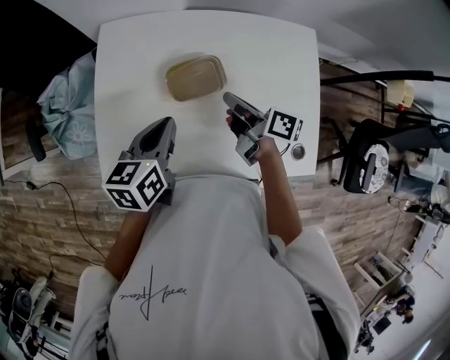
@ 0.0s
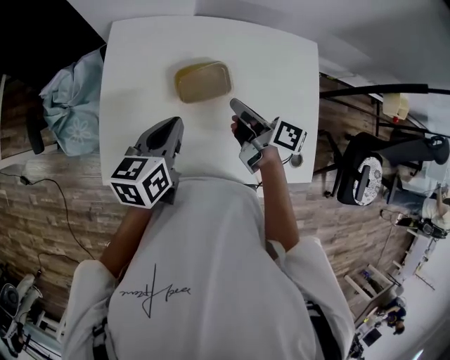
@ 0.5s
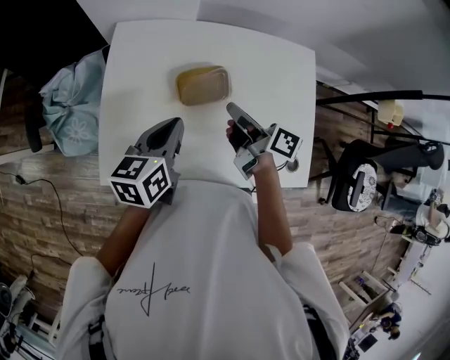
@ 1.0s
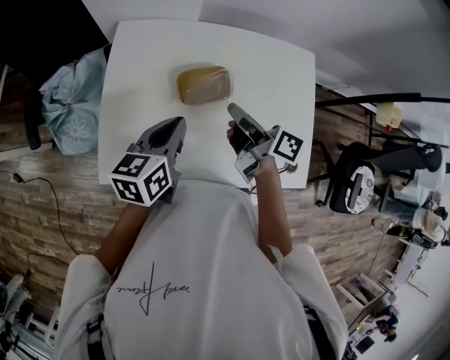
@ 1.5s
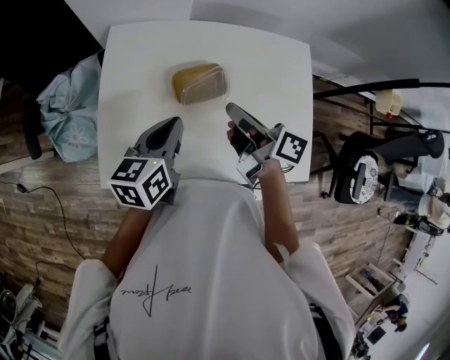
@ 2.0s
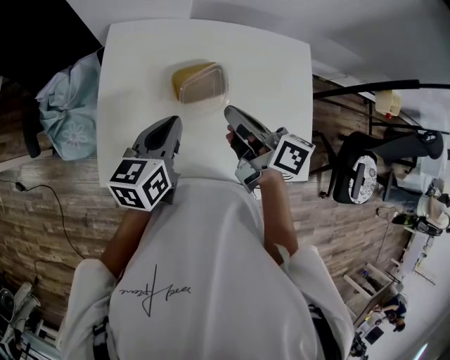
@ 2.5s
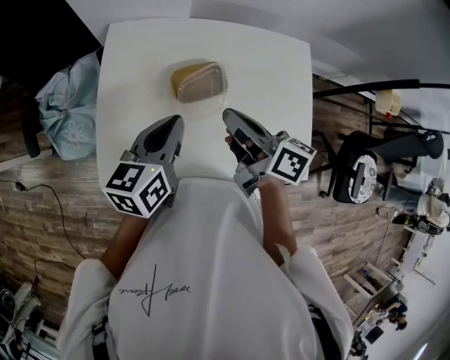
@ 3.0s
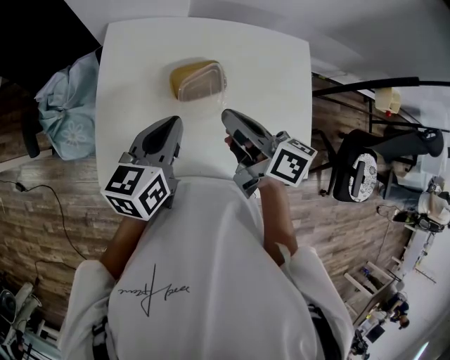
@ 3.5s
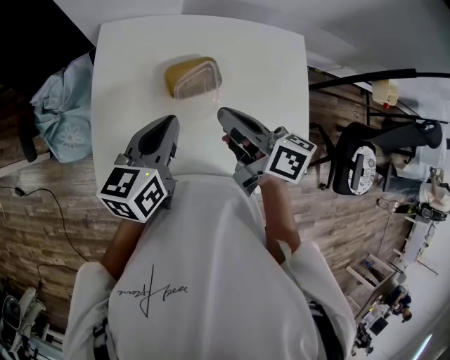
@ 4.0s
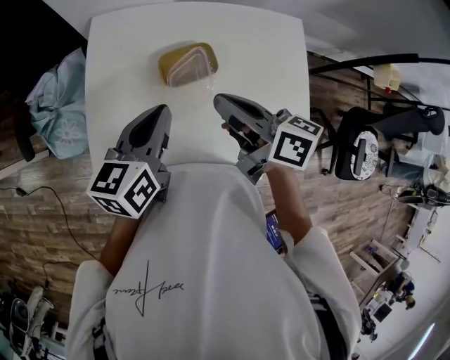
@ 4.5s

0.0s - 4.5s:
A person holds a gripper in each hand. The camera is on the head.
0.0s - 2.0s: The right gripper moves upward, approximately 10 cm.
2.0s - 4.5s: The right gripper shifts by approximately 5 cm.

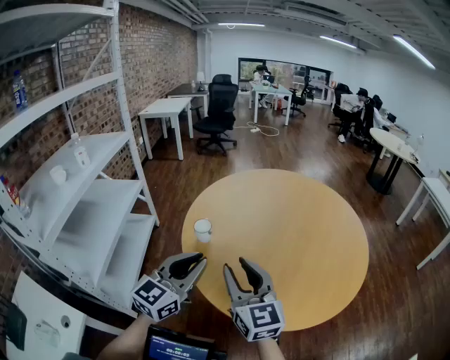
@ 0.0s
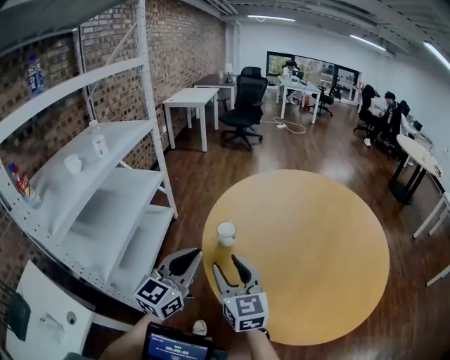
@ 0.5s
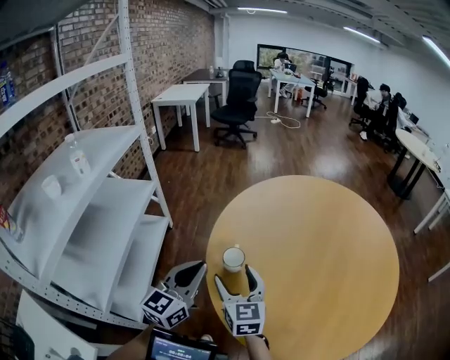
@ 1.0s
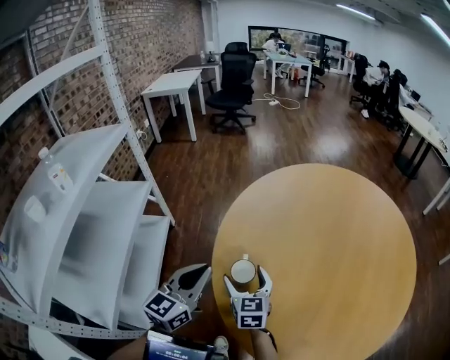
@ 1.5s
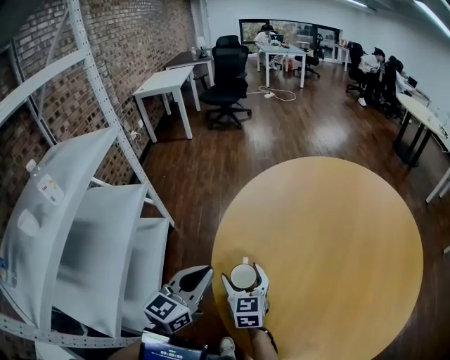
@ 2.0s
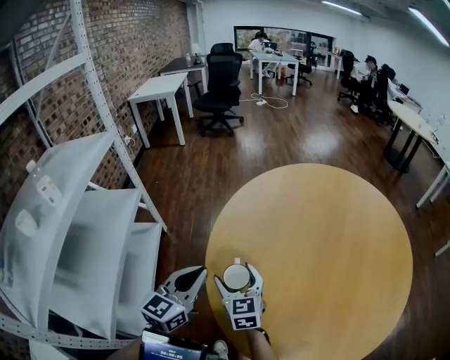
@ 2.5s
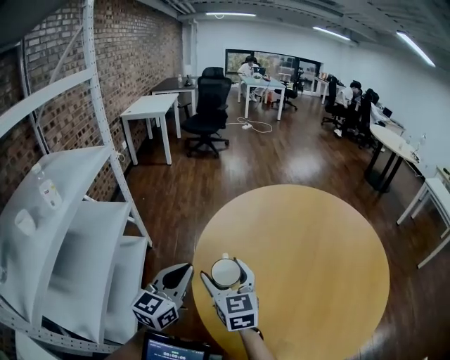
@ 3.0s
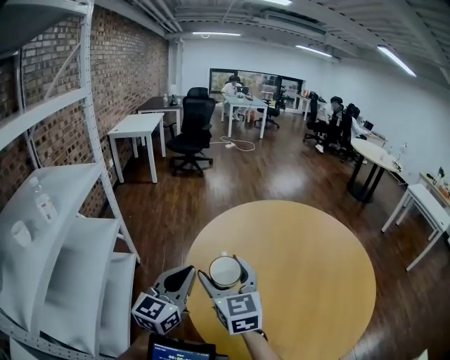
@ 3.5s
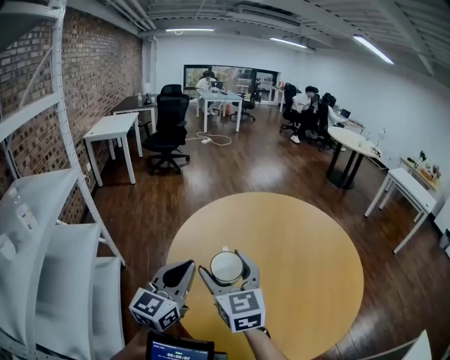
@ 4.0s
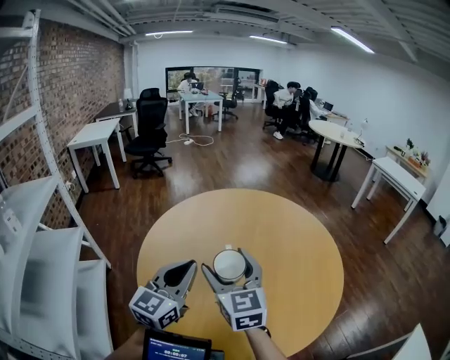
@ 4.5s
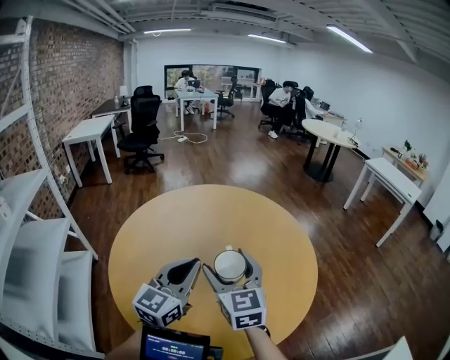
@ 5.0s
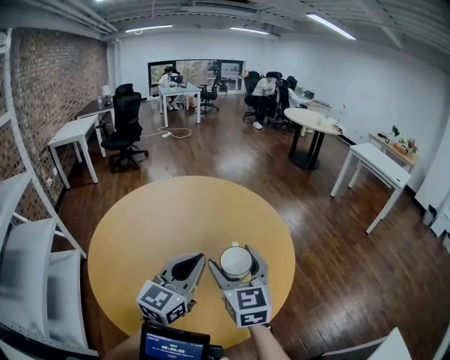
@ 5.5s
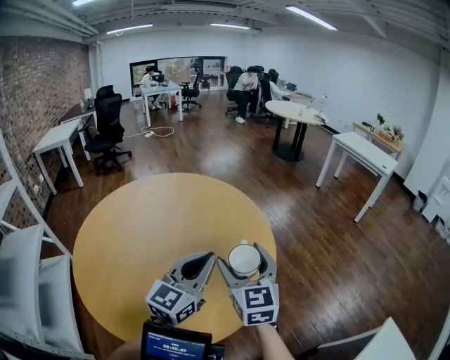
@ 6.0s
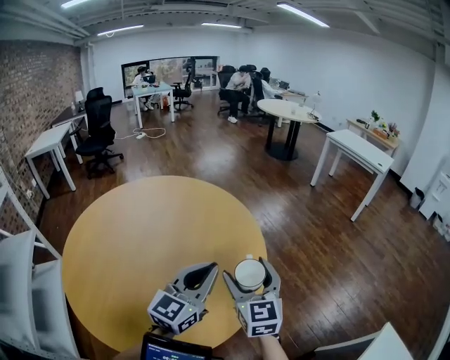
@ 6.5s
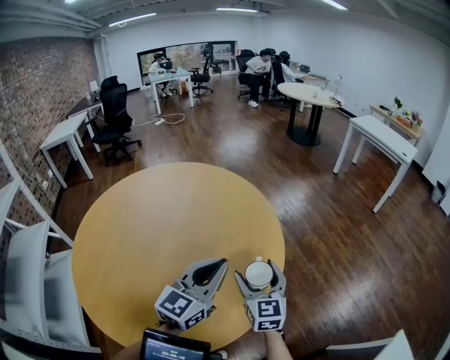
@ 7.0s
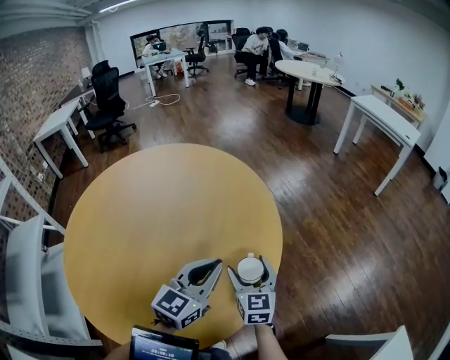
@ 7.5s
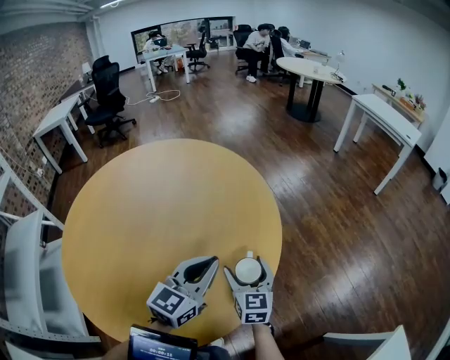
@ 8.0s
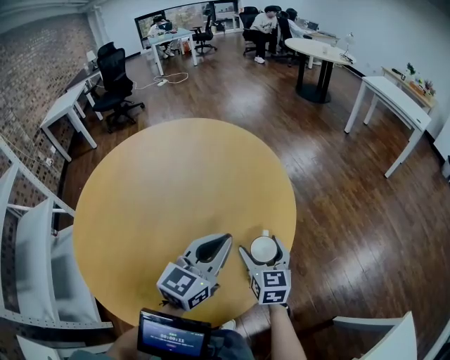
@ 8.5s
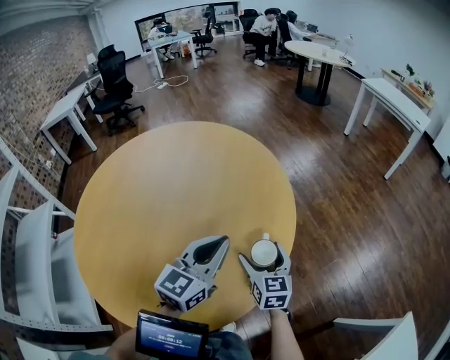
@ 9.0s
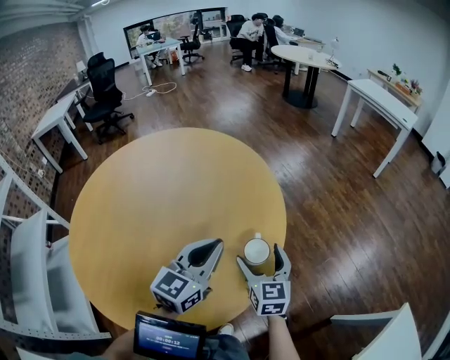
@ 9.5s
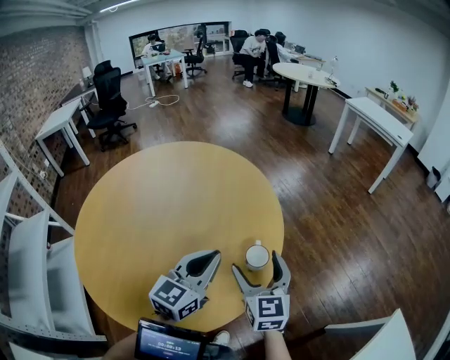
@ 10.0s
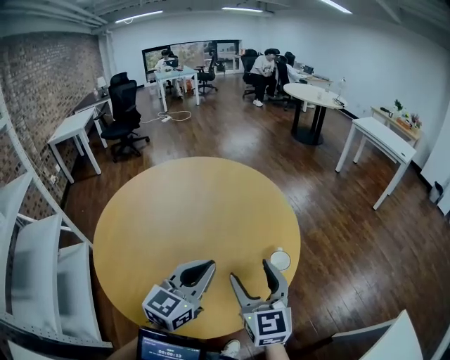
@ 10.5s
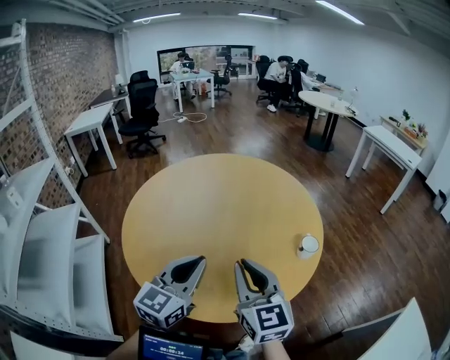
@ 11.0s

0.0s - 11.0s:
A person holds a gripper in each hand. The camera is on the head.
0.0s - 2.0s: The right gripper is displaced forward, downward and to the left by roughly 40 cm, turns by roughly 30 degrees, and opens up. The left gripper goes about 35 cm forward, to the left and downward.
2.0s - 3.5s: The left gripper goes about 15 cm upward. Meanwhile the right gripper travels upward by about 25 cm.
3.5s - 5.5s: Both grippers are carried to the right, roughly 50 cm.
5.5s - 7.5s: The left gripper travels to the right, downward and forward by about 25 cm, while the right gripper travels downward and to the right by approximately 30 cm.
7.5s - 9.0s: There are only small adjustments of the grippers.
9.0s - 11.0s: The right gripper goes about 40 cm upward, backward and to the left, turns by approximately 20 degrees, and closes its fingers, while the left gripper travels to the left, backward and upward by about 35 cm.

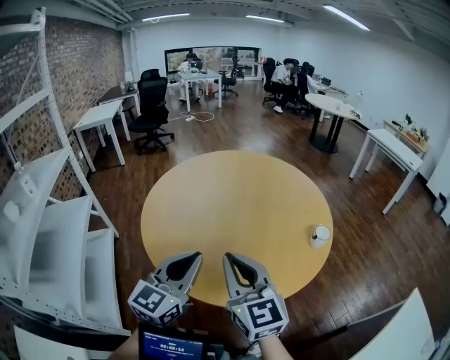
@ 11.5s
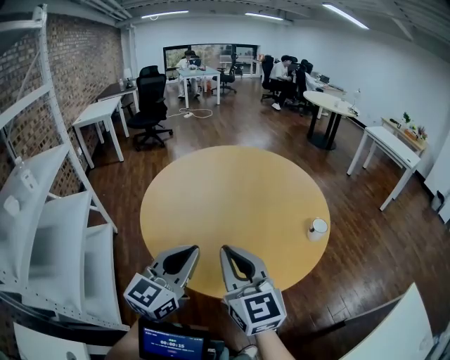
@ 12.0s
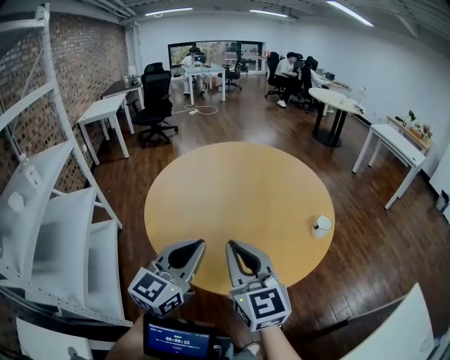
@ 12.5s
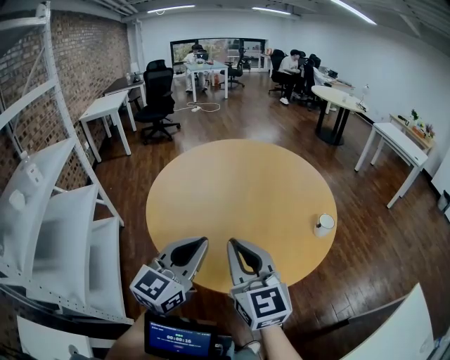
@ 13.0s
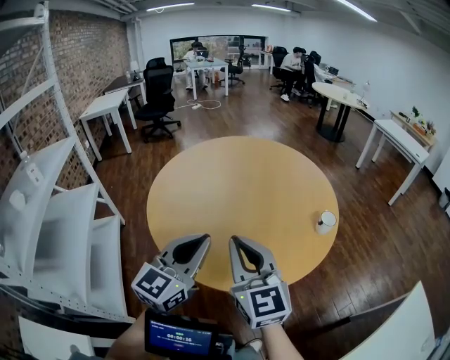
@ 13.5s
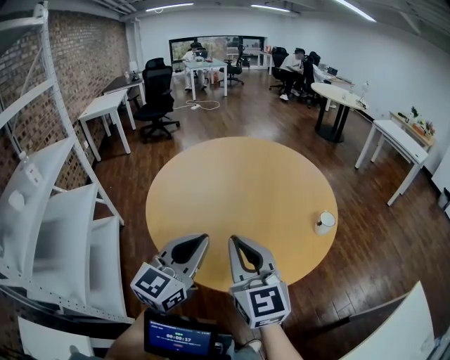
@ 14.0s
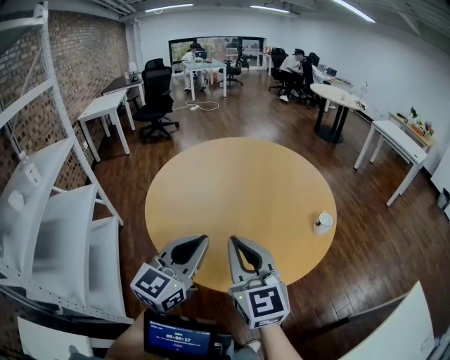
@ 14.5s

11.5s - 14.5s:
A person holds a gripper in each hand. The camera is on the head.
11.5s - 13.0s: The grippers make only small movements.
13.0s - 14.5s: The two grippers keep their place.

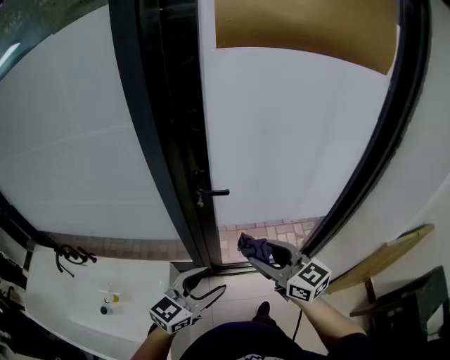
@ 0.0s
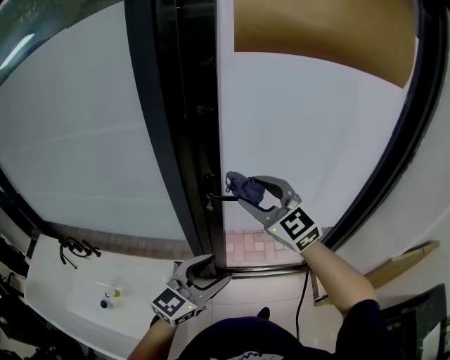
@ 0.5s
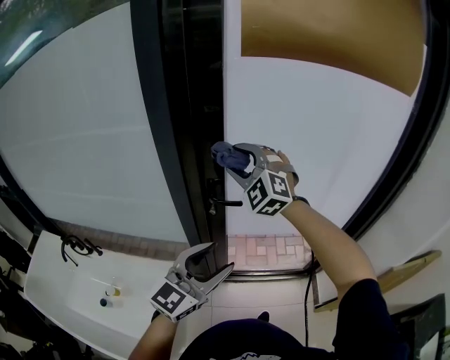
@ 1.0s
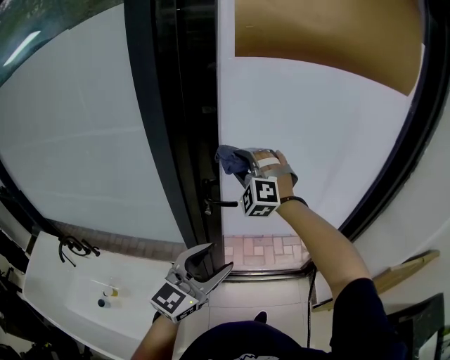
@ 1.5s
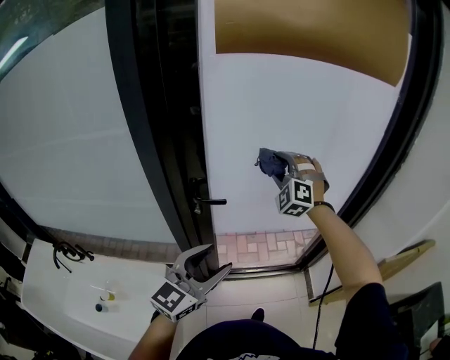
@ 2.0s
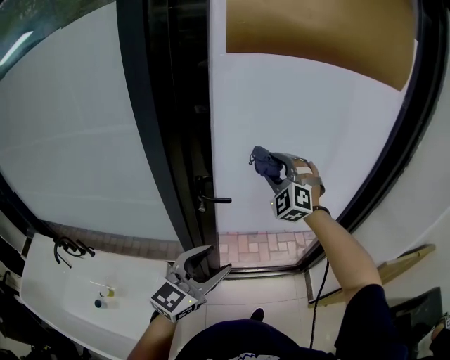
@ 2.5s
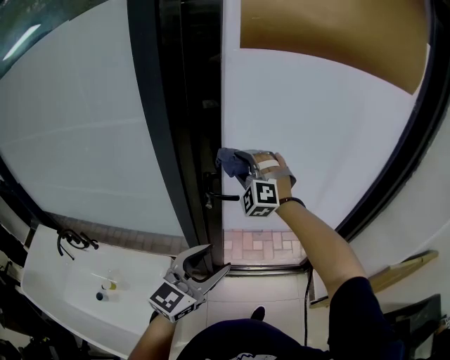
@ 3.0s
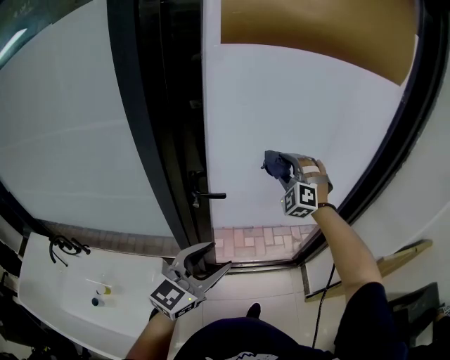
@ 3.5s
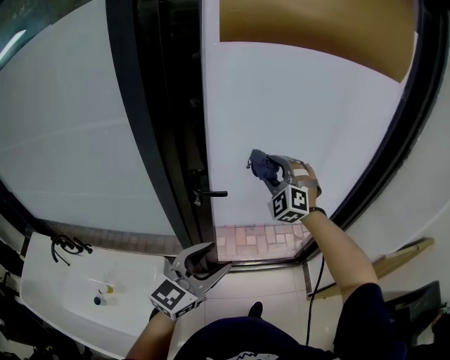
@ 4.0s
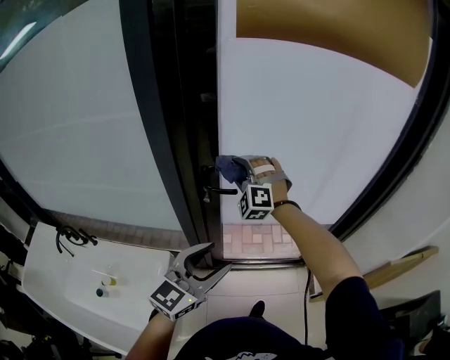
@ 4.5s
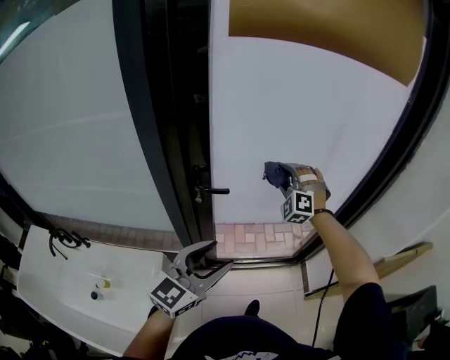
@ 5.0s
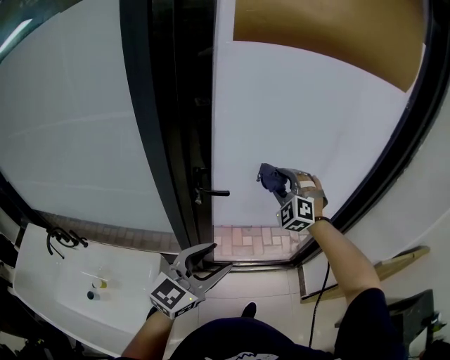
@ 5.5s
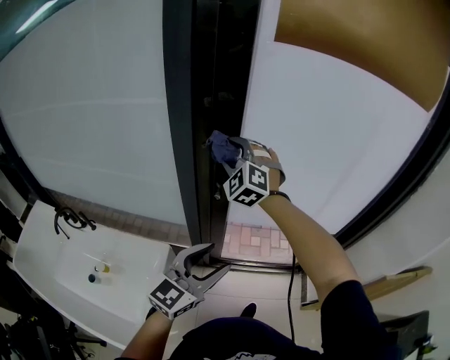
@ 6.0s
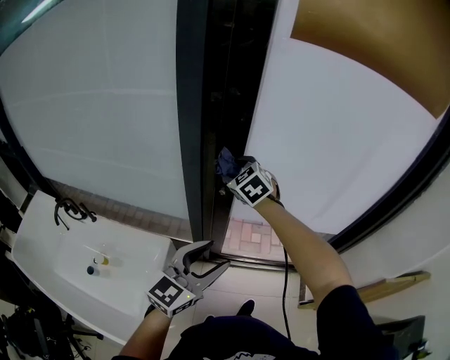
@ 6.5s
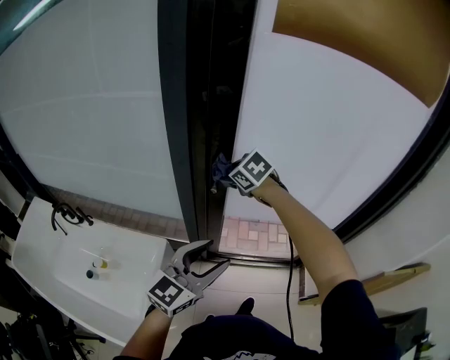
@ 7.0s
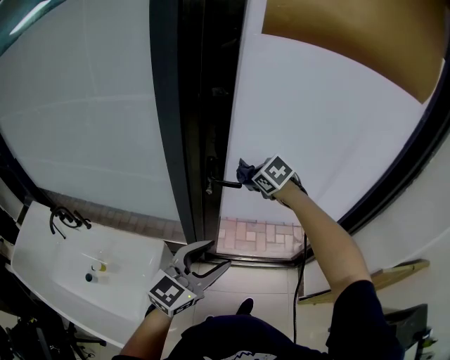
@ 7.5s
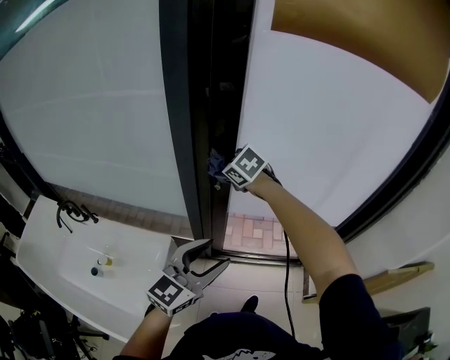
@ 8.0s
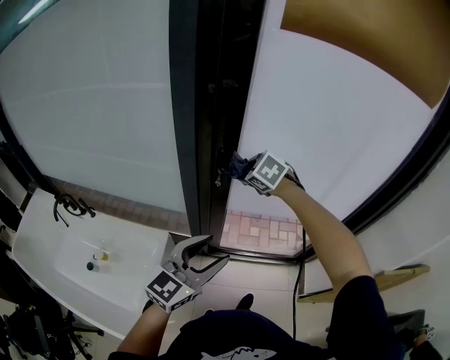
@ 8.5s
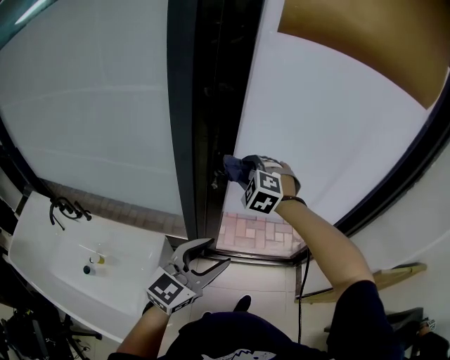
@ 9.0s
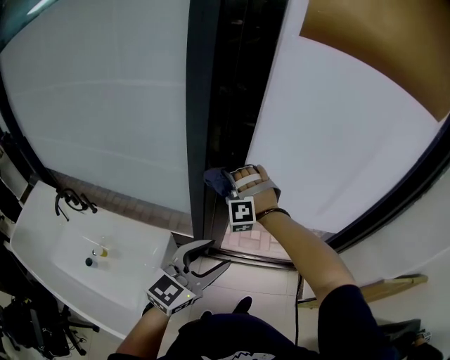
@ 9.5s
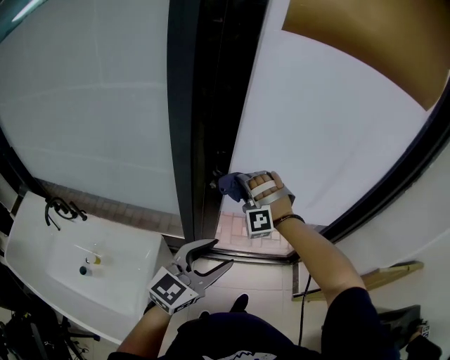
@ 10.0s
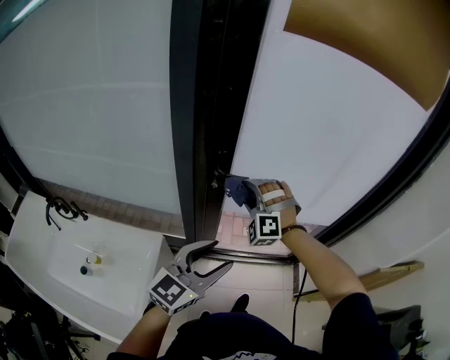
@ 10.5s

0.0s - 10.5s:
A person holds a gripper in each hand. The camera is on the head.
0.0s - 2.0s: The left gripper is displaced upward and forward by roughly 10 cm, while the right gripper travels forward by approximately 30 cm, and rotates around the line of its fingers by some 70 degrees, counterclockwise from behind.
2.0s - 4.0s: The right gripper goes left and right, about 20 cm each way, reversing 2 times.
4.0s - 6.5s: The left gripper travels to the left by some 5 cm. The right gripper moves left and right over approximately 25 cm, changing direction 2 times, and swivels approximately 40 degrees.
6.5s - 8.5s: The right gripper swings left and right, some 15 cm each way, with 2 reversals.
8.5s - 10.5s: The right gripper goes to the left and returns, about 10 cm each way, and turns by roughly 60 degrees.
